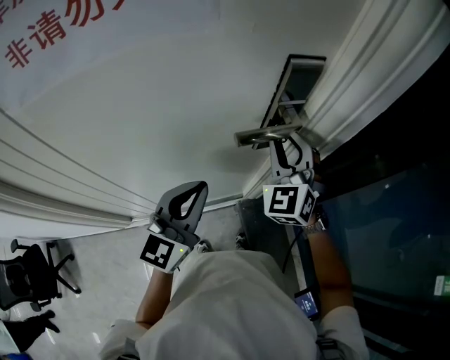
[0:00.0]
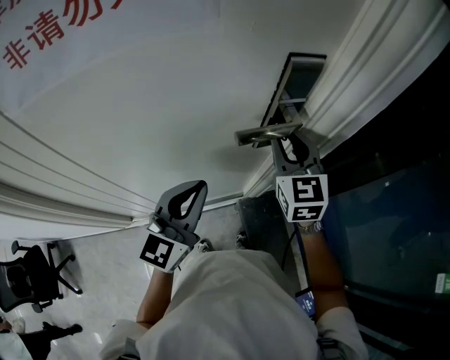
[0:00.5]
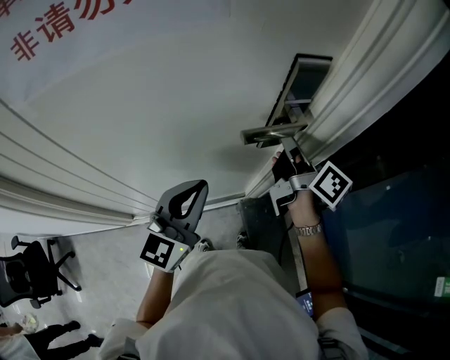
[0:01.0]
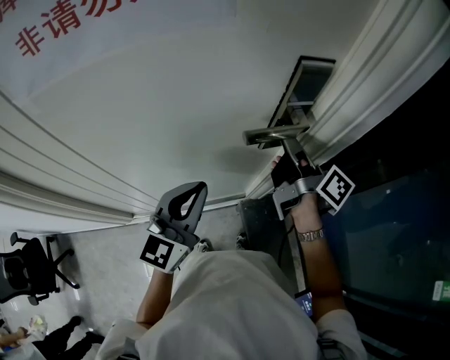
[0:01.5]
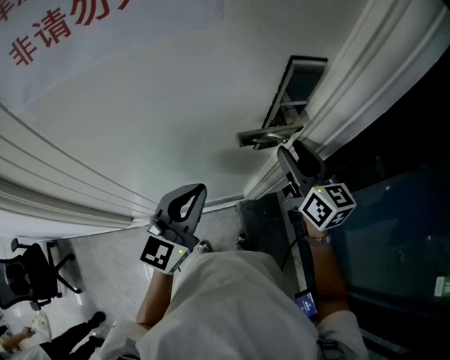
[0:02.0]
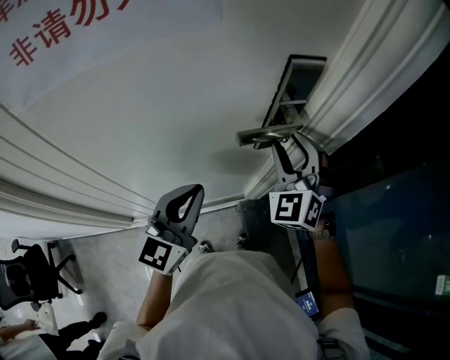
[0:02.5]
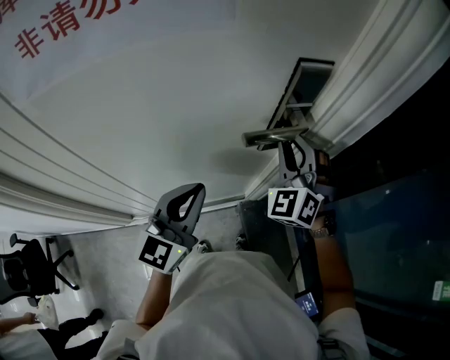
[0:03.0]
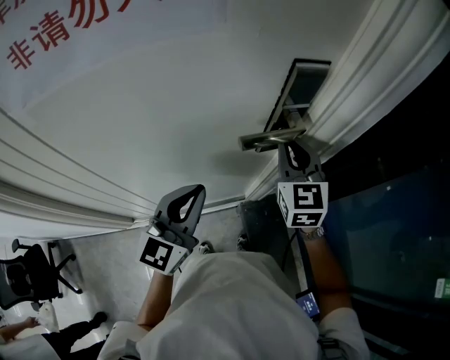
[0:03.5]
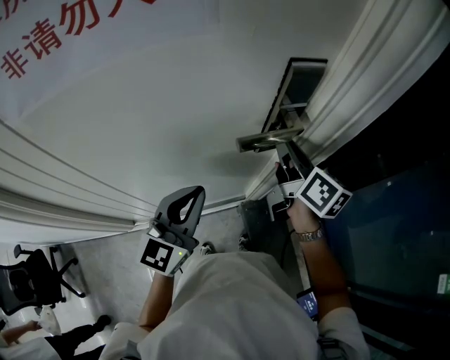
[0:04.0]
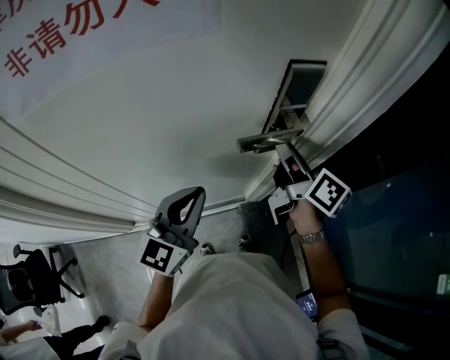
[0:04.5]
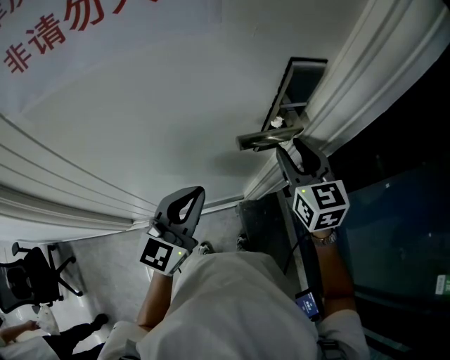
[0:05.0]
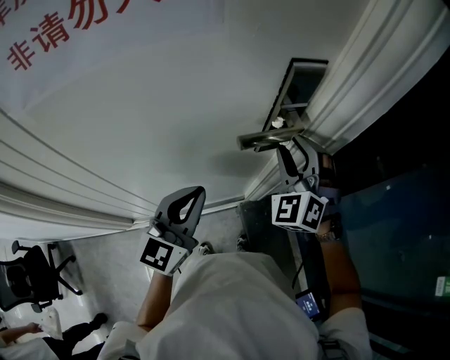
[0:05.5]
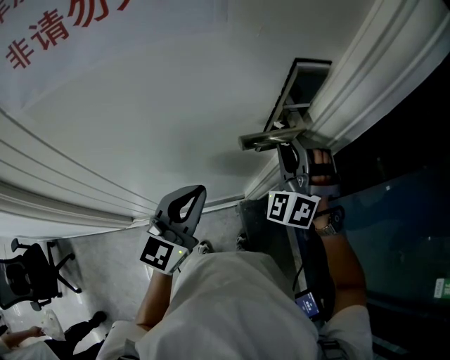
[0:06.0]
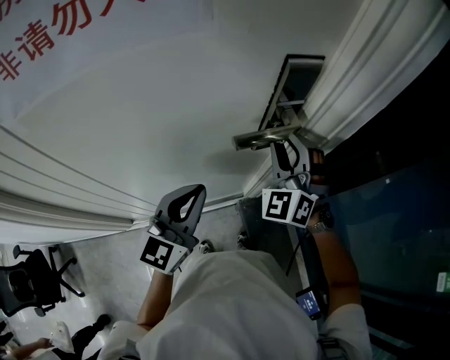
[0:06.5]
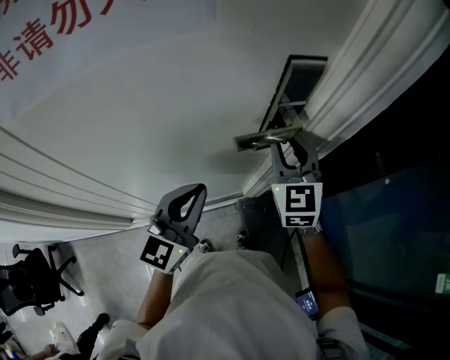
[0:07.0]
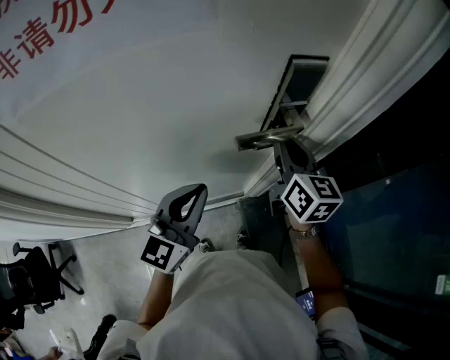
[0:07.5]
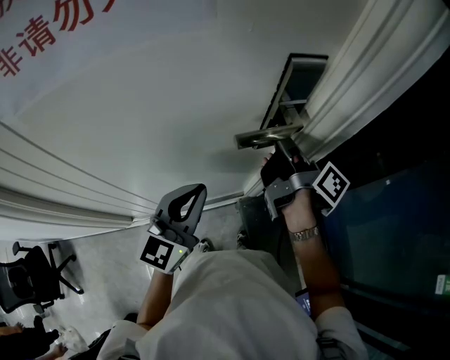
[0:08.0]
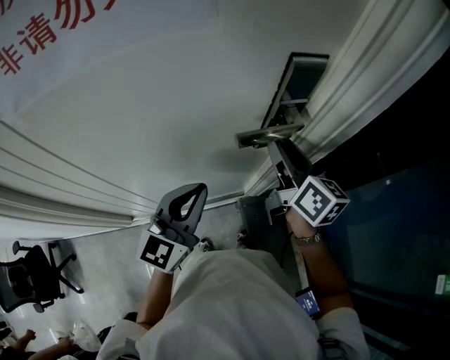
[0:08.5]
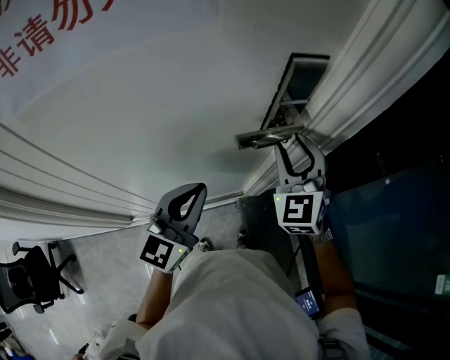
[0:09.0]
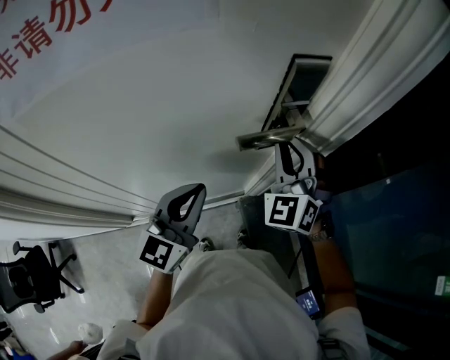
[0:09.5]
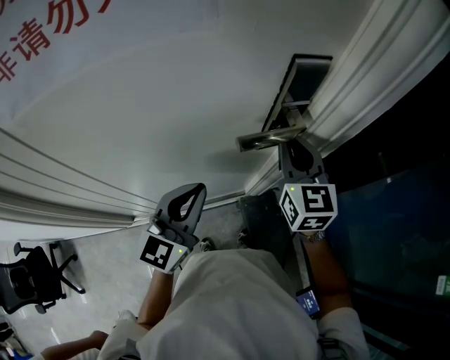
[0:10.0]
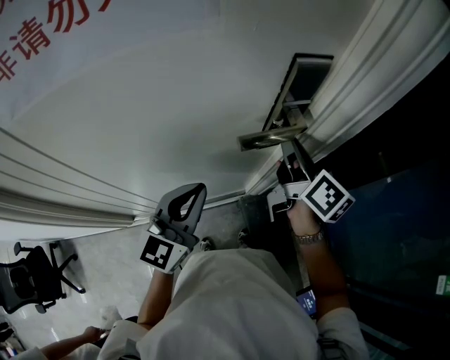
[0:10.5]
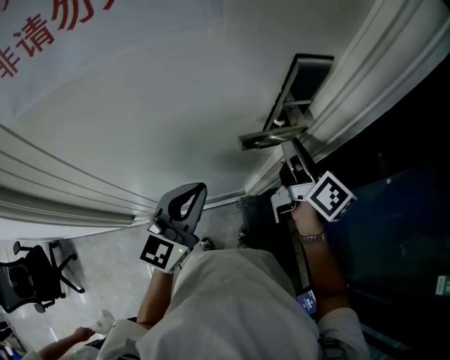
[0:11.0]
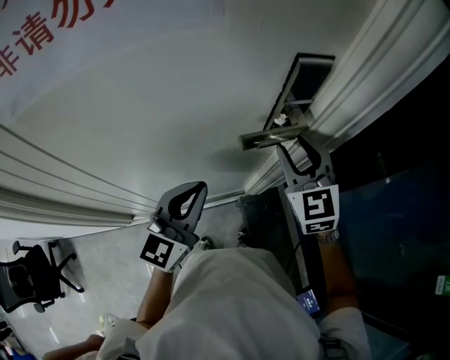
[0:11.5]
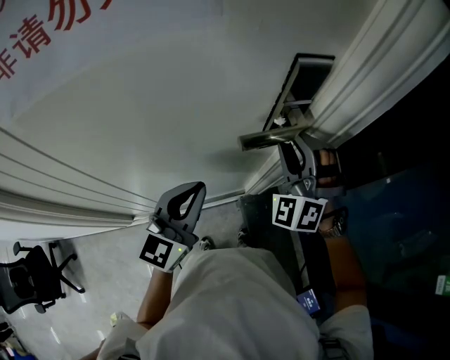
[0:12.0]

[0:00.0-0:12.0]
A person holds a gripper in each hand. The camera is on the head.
0:00.0 to 0:02.0: The right gripper rolls clockwise, seen from behind, by some 60 degrees.
0:02.0 to 0:04.0: The right gripper changes its angle by approximately 30 degrees, and closes its fingers.
0:04.0 to 0:06.0: The right gripper rolls counterclockwise, seen from behind, by about 120 degrees, and opens.
0:06.0 to 0:08.0: The right gripper rolls clockwise, seen from behind, by roughly 150 degrees, and closes.
0:08.0 to 0:10.0: The right gripper rolls counterclockwise, seen from behind, by approximately 80 degrees, and opens and closes again.
0:10.0 to 0:12.0: The right gripper rolls counterclockwise, seen from behind, by roughly 70 degrees, and opens.

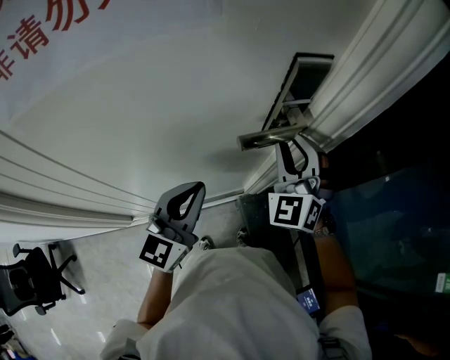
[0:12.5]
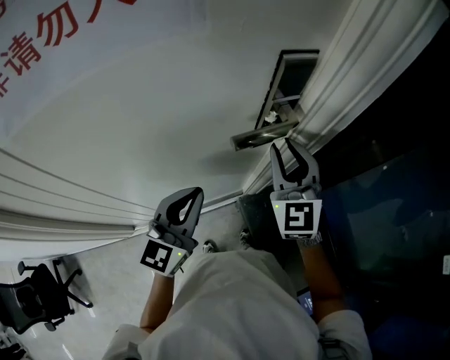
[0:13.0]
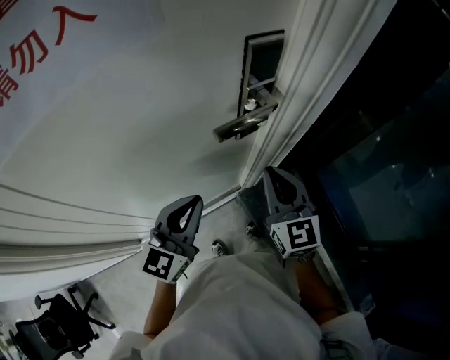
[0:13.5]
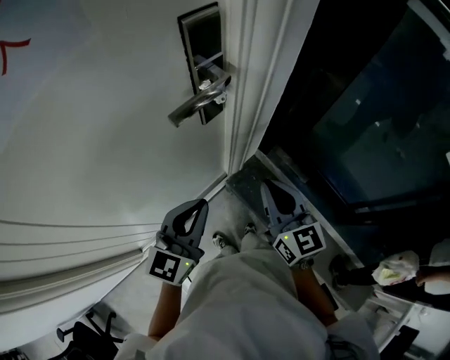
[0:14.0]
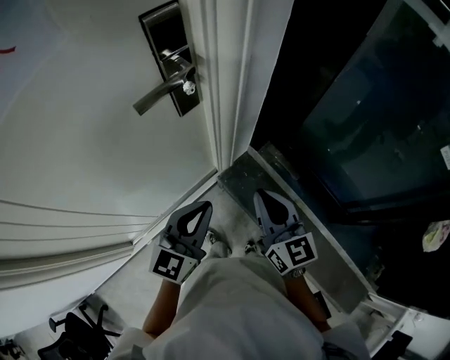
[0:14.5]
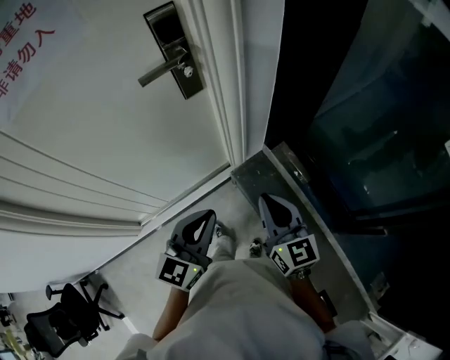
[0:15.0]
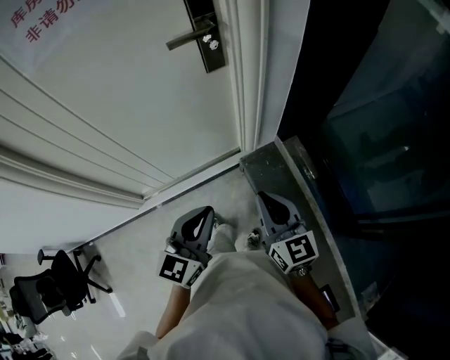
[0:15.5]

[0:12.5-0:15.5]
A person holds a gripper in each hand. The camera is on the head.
0:12.5 to 0:14.0: The right gripper moves backward, to the right and downward, some 20 cm, rolls clockwise, seen from behind, by some 60 degrees, and closes up, while the left gripper travels to the right and backward by some 10 cm, and changes its angle by some 20 degrees.
0:14.0 to 0:15.5: The two grippers go roughly 25 cm backward and to the right.

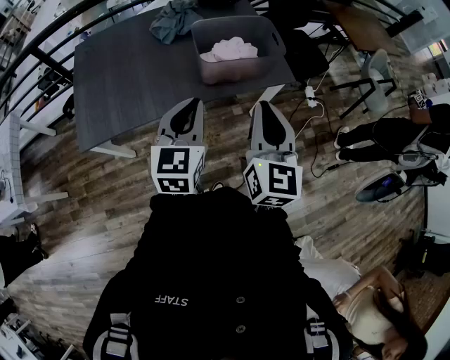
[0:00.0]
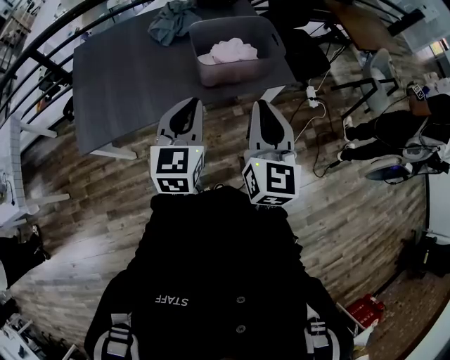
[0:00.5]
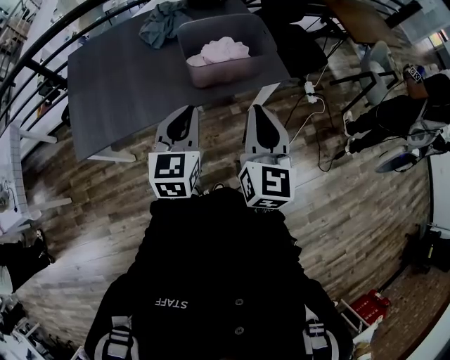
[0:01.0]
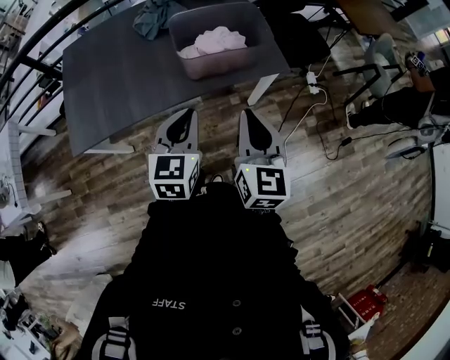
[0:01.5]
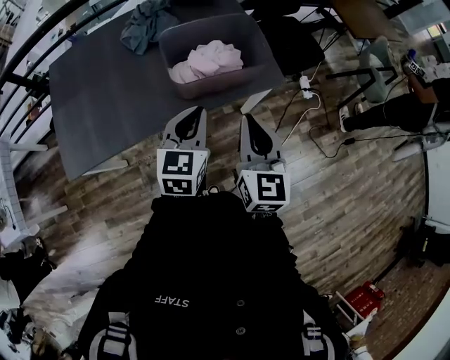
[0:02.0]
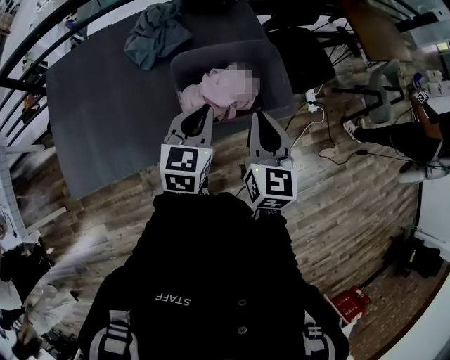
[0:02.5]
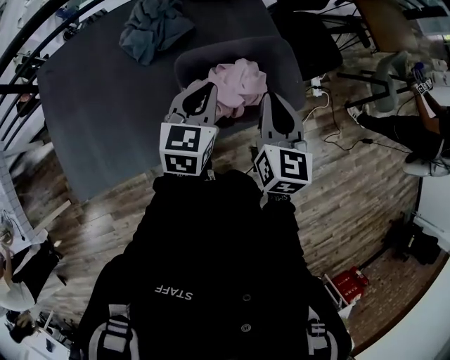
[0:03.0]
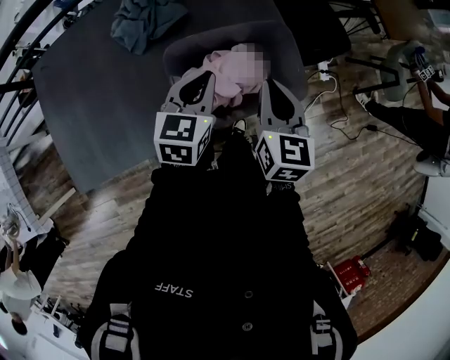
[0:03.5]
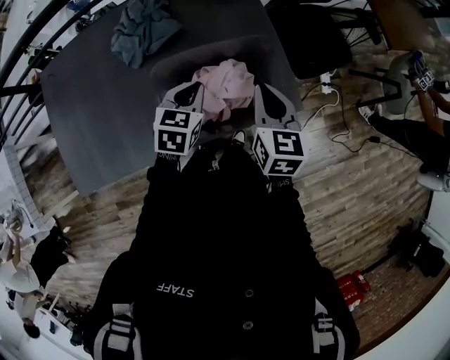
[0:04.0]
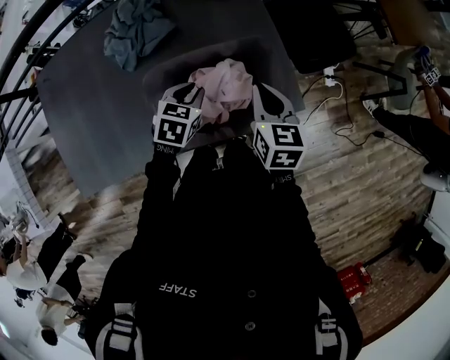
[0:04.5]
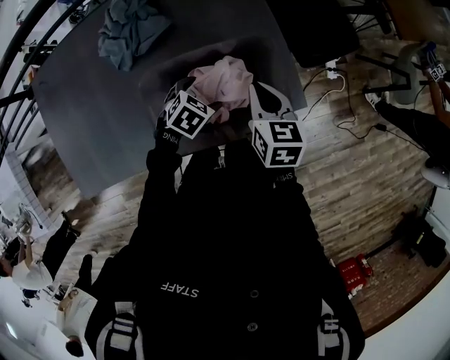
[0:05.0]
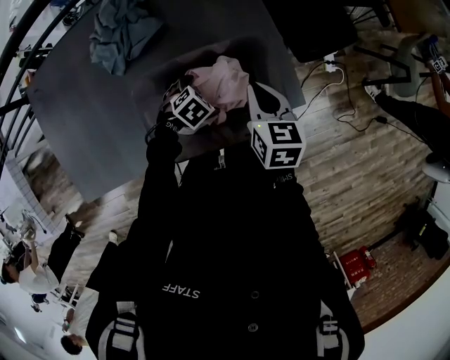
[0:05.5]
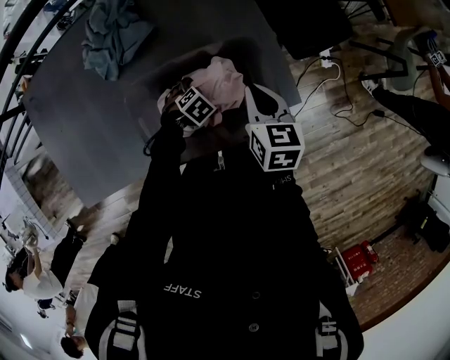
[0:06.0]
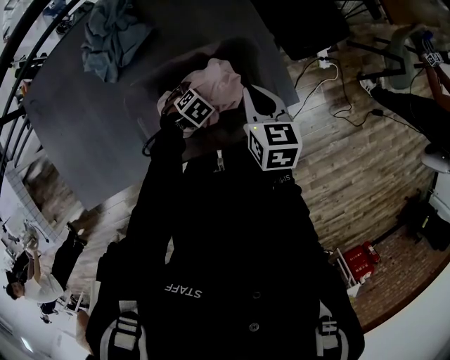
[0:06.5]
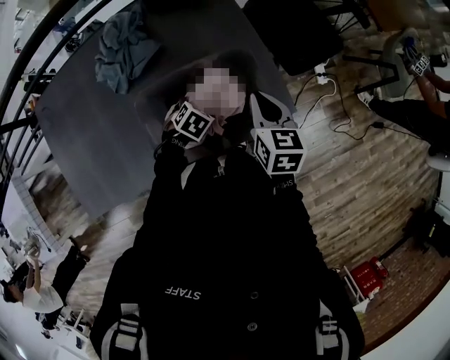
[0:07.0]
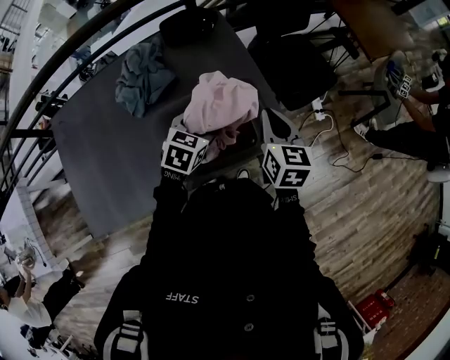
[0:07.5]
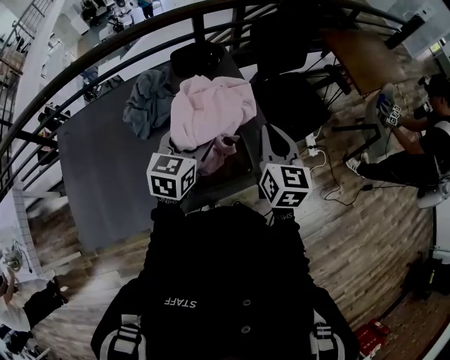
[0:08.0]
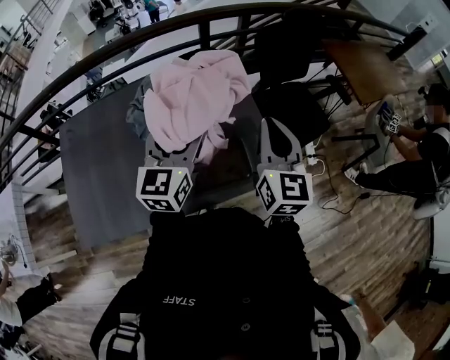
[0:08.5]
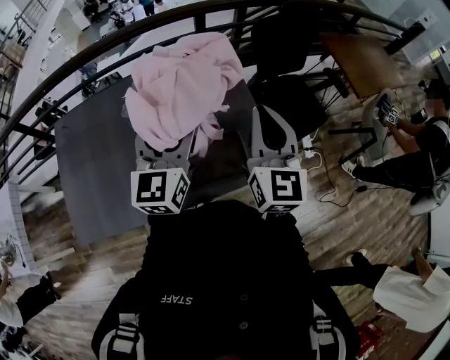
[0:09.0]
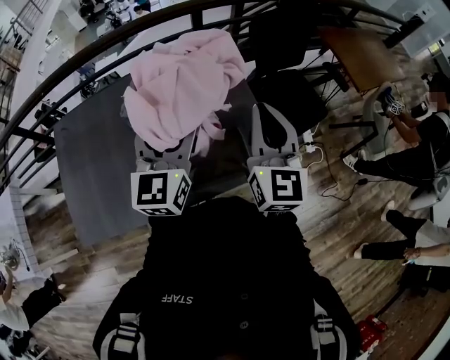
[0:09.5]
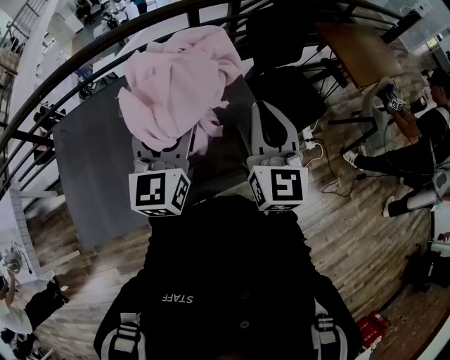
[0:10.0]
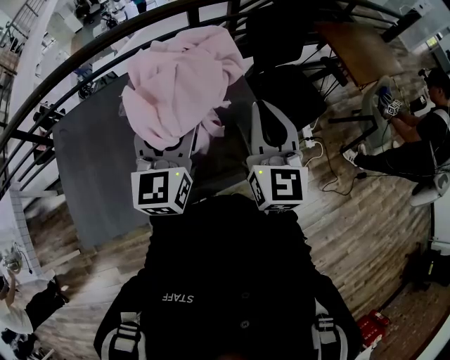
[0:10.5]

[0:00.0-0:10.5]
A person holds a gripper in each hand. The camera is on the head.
0:00.0 to 0:02.0: The left gripper moves forward, downward and to the right, about 15 cm, while the right gripper is displaced forward and downward by some 15 cm.
0:02.0 to 0:04.0: The right gripper is displaced forward by roughly 30 cm. The left gripper is displaced forward and downward by approximately 30 cm, and changes its angle by about 20 degrees.
0:04.0 to 0:06.5: The left gripper travels downward by roughly 25 cm, tips its fingers downward by about 30 degrees, and opens its fingers. The right gripper moves downward, approximately 10 cm.
0:06.5 to 0:08.5: The right gripper travels upward by some 30 cm, and angles its fingers upward, by approximately 40 degrees; the left gripper goes approximately 50 cm upward, and points its fingers approximately 70 degrees further upward.
0:08.5 to 0:10.5: The grippers stay close to where they were, moving slightly.

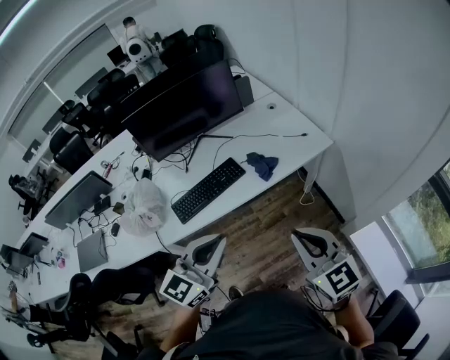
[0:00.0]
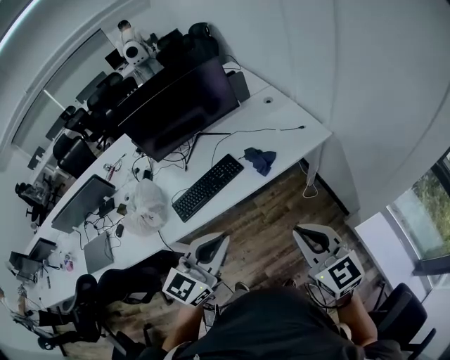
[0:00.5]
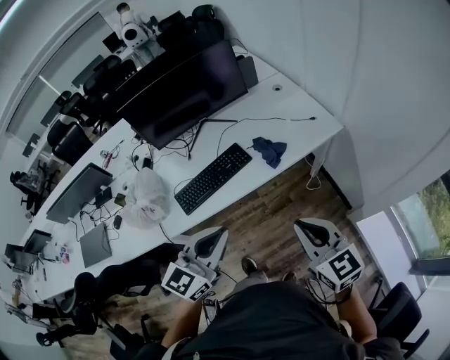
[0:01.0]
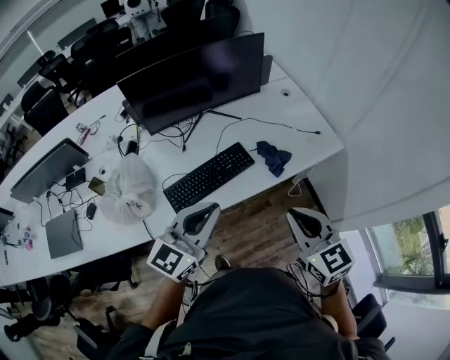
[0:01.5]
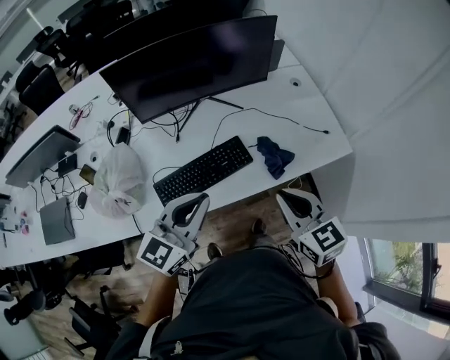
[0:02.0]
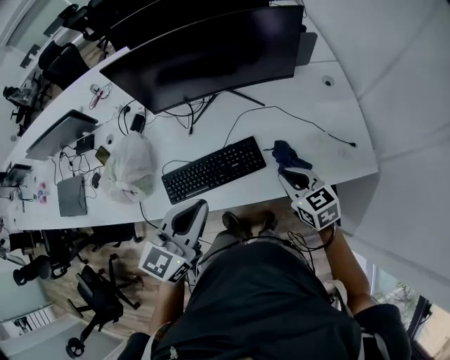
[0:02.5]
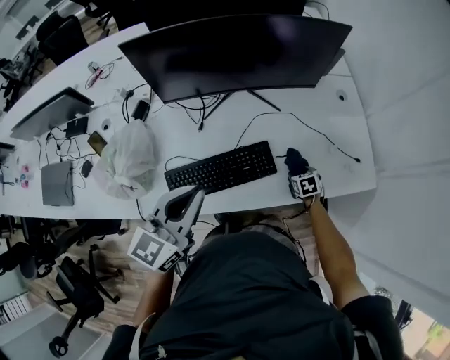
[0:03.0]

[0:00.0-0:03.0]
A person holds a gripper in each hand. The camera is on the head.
0:00.0 to 0:01.5: The two grippers go approximately 20 cm forward and to the left.
0:01.5 to 0:03.0: The right gripper heads downward and forward, covering about 50 cm, tilts its fingers about 50 degrees downward, and opens. Meanwhile the left gripper goes approximately 15 cm forward, and rotates approximately 20 degrees.
